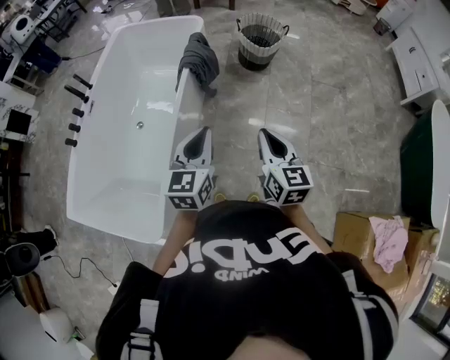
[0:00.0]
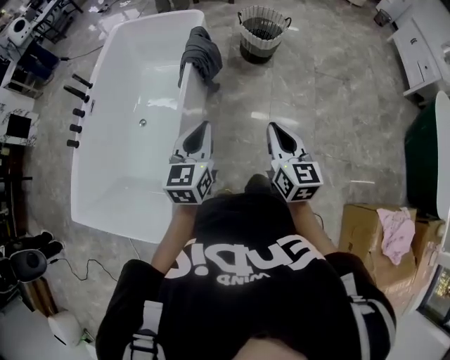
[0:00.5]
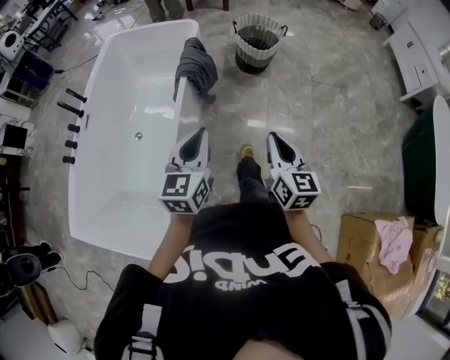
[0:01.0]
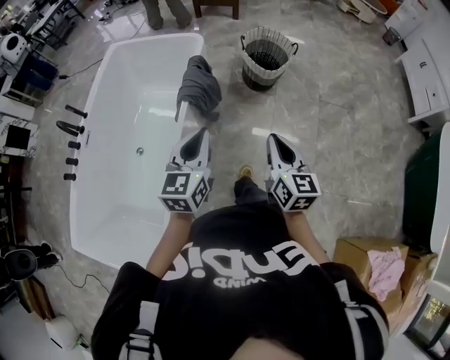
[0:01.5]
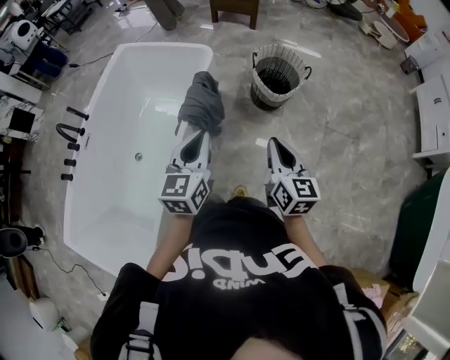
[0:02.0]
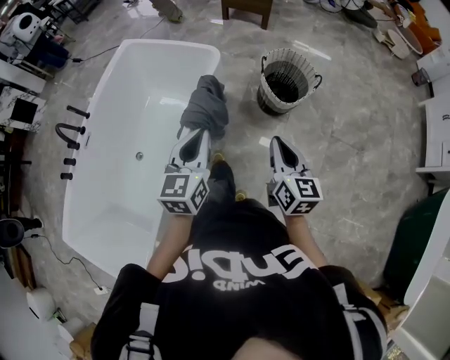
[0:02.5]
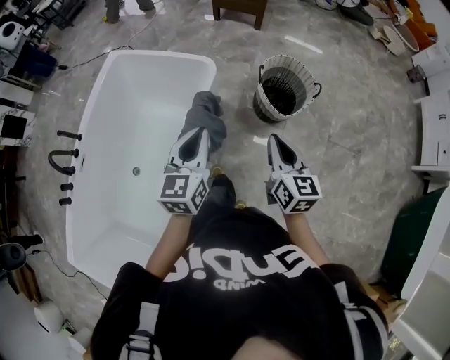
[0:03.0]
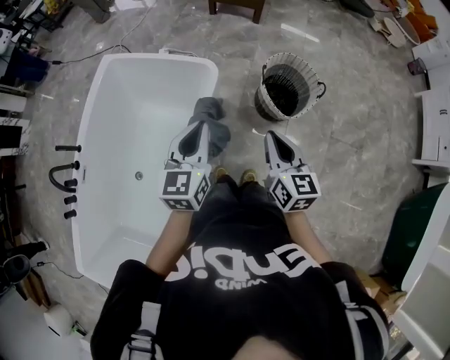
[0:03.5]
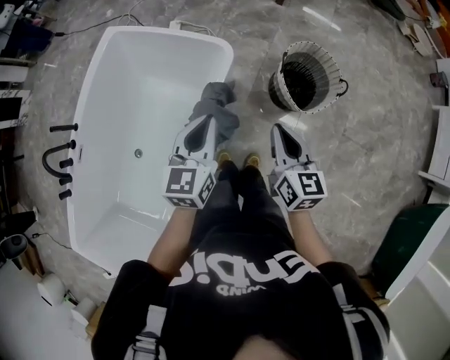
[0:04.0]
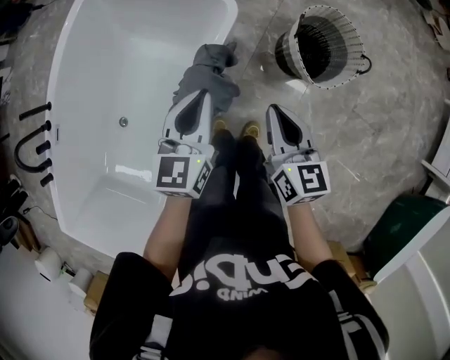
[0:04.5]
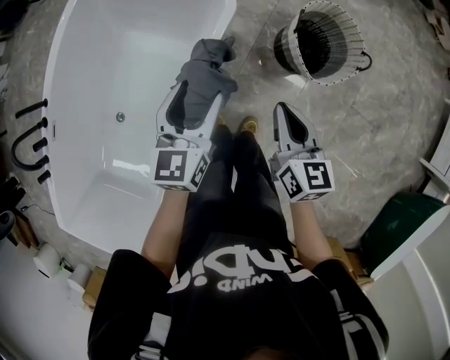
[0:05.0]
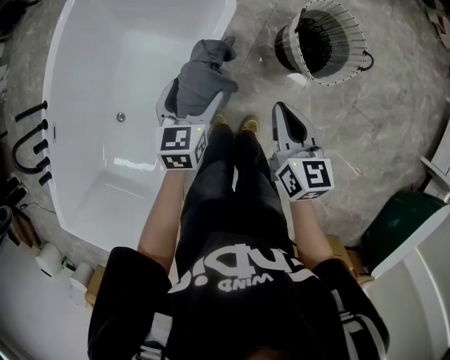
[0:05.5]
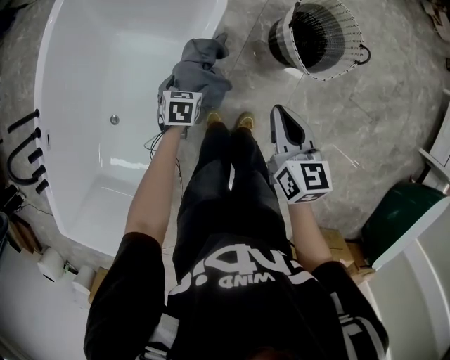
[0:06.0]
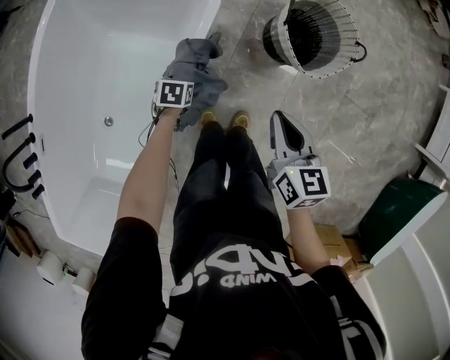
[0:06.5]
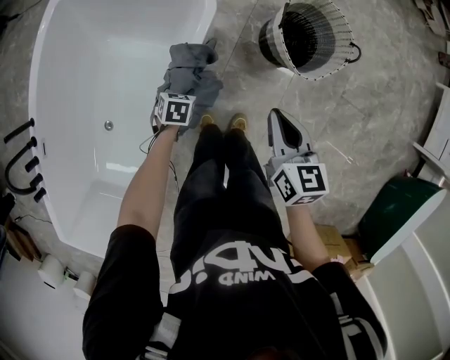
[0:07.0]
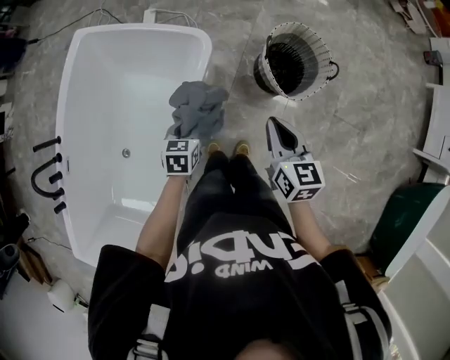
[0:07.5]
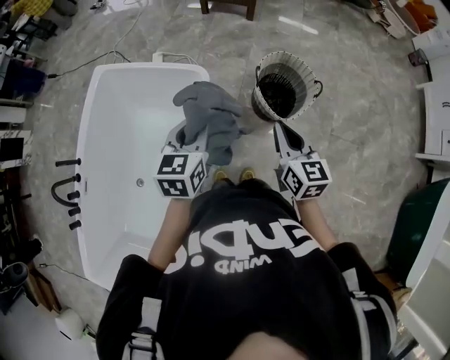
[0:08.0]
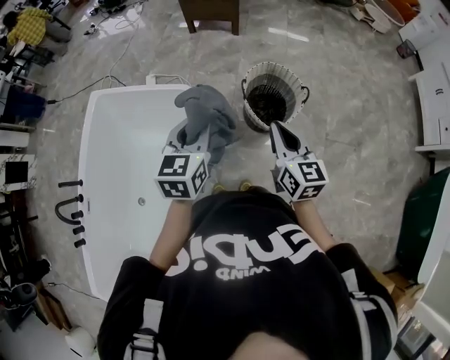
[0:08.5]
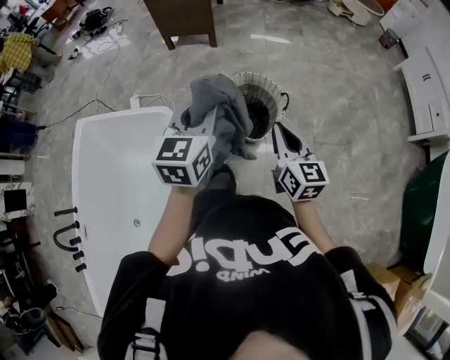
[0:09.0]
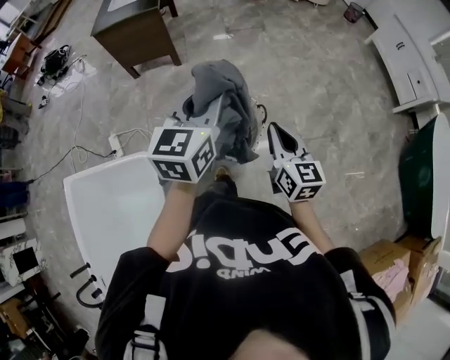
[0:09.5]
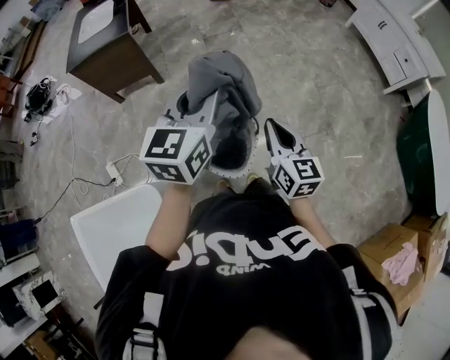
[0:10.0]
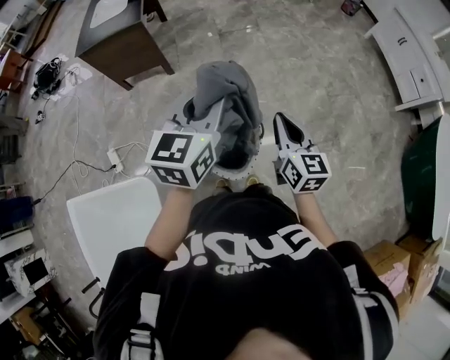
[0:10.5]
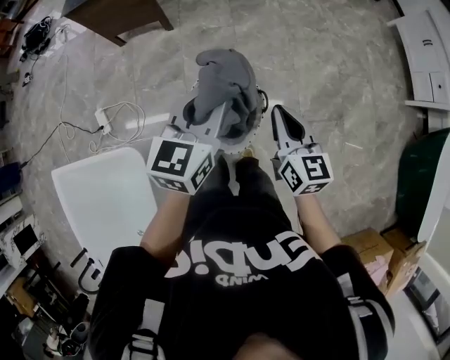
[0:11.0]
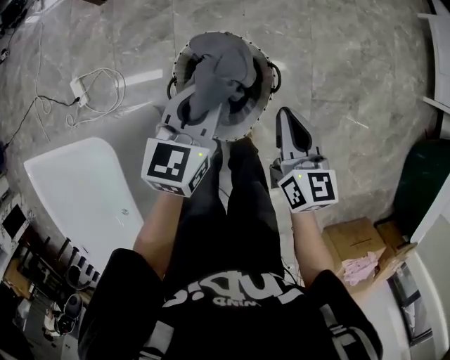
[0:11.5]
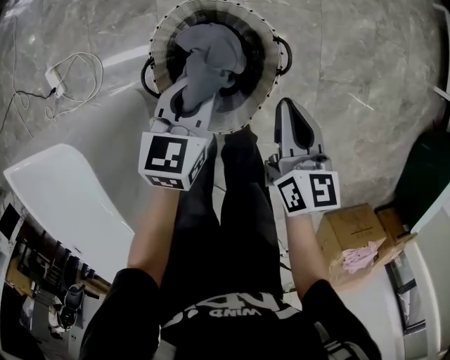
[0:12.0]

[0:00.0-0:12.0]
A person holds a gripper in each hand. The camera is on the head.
0:00.0 to 0:02.0: Both grippers travel together forward, about 35 cm.
0:02.0 to 0:04.0: Both grippers move forward, approximately 35 cm.
0:04.0 to 0:06.0: The right gripper moves downward, approximately 15 cm. The left gripper shifts approximately 40 cm downward, points its fingers some 40 degrees further downward, and opens.
0:06.0 to 0:08.0: The right gripper goes approximately 20 cm upward and to the right; the left gripper moves upward, approximately 40 cm, tips its fingers upward by roughly 40 degrees, and closes.
0:08.0 to 0:10.0: The right gripper ends up roughly 35 cm from where it was, and turns by about 30 degrees; the left gripper ends up approximately 50 cm from where it was, and turns by approximately 40 degrees.
0:10.0 to 0:12.0: Both grippers travel together downward, some 40 cm. The right gripper turns by some 20 degrees. The left gripper swivels some 30 degrees.

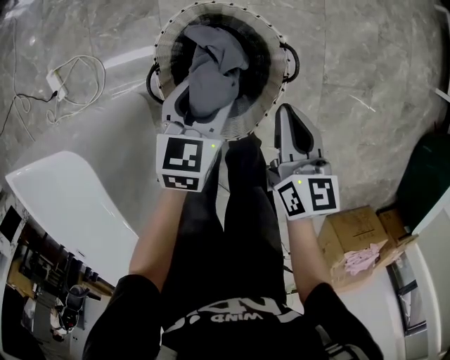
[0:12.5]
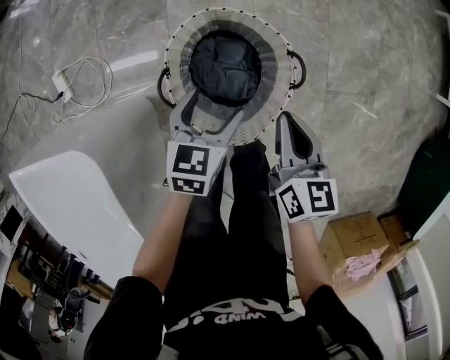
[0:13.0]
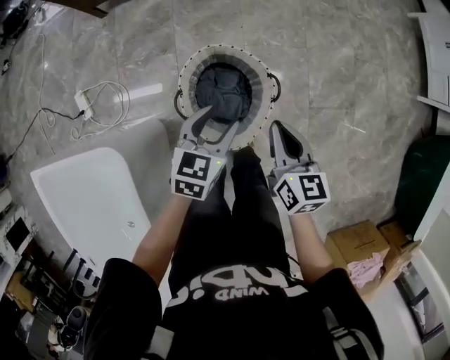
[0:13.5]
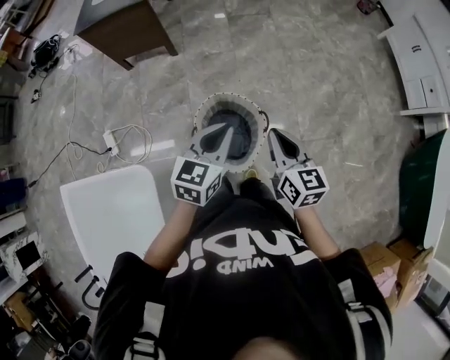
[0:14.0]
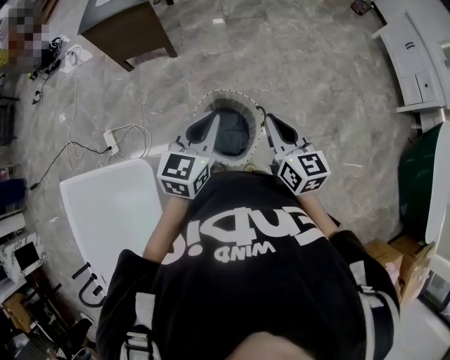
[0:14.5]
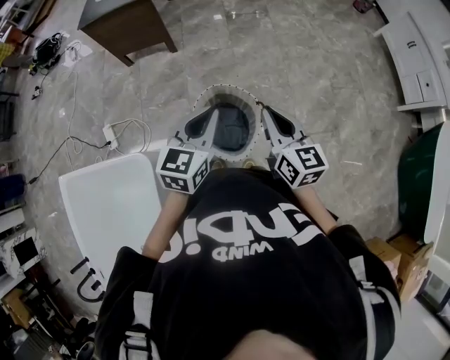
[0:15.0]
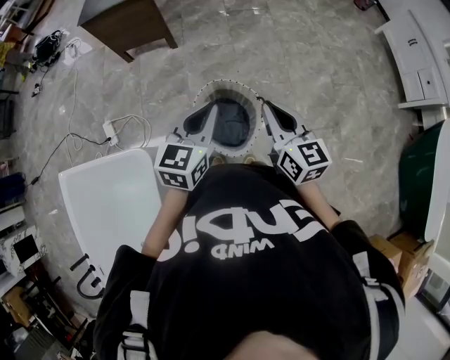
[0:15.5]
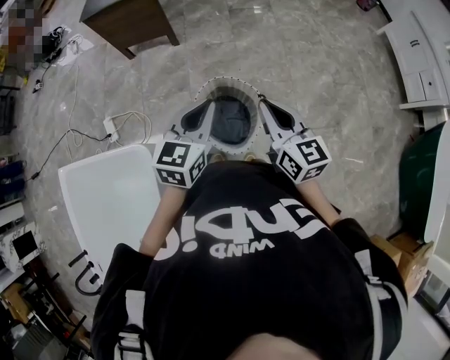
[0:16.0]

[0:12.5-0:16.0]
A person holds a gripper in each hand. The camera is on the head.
0:12.5 to 0:14.5: Both grippers travel together upward, about 35 cm. The left gripper rotates approximately 30 degrees, and closes. The right gripper swivels roughly 20 degrees.
0:14.5 to 0:16.0: The grippers move only a little.

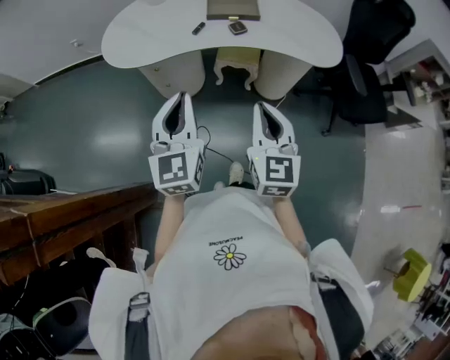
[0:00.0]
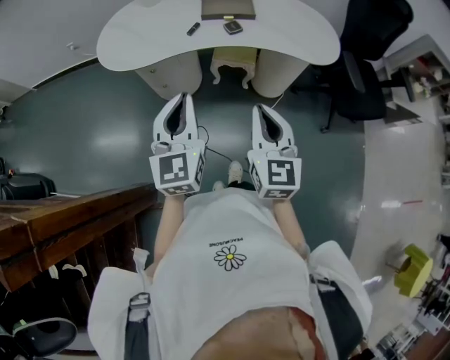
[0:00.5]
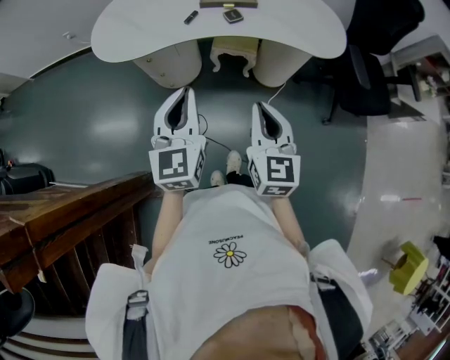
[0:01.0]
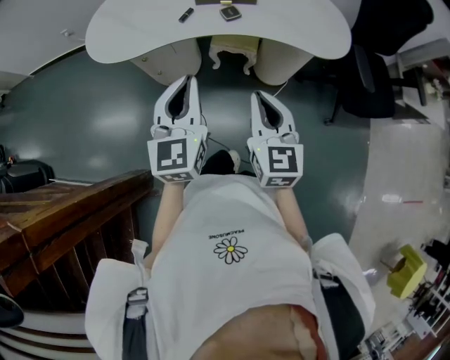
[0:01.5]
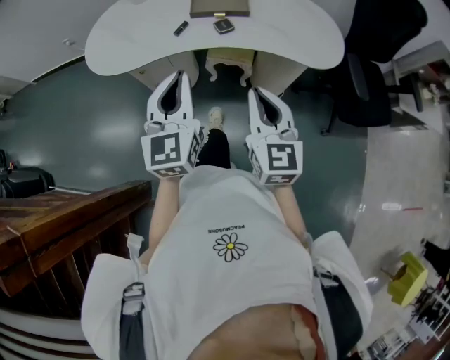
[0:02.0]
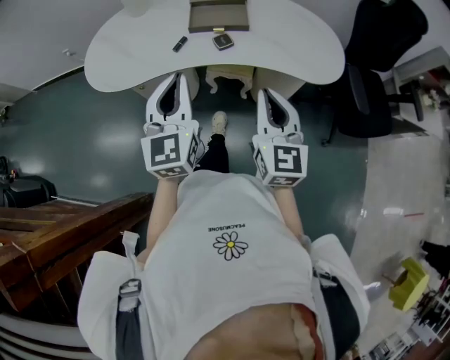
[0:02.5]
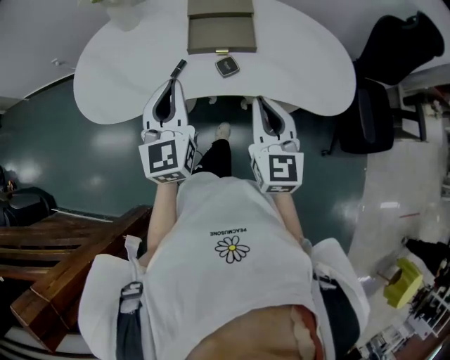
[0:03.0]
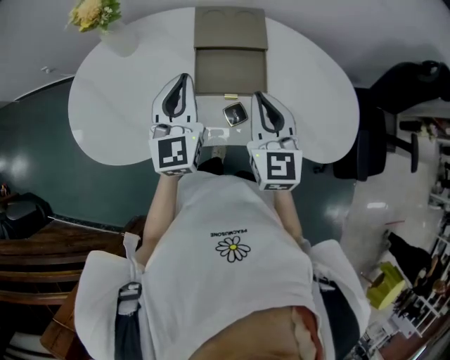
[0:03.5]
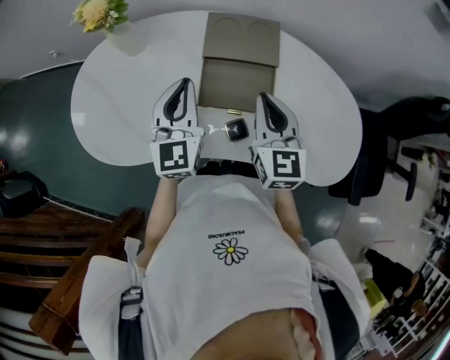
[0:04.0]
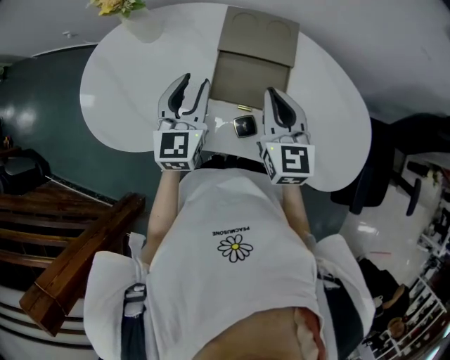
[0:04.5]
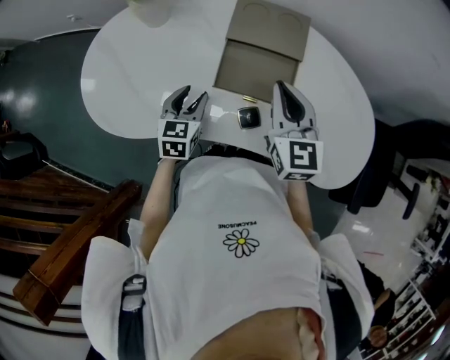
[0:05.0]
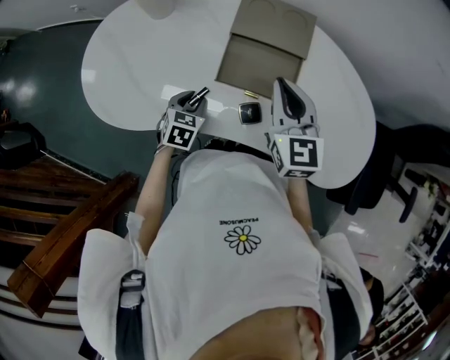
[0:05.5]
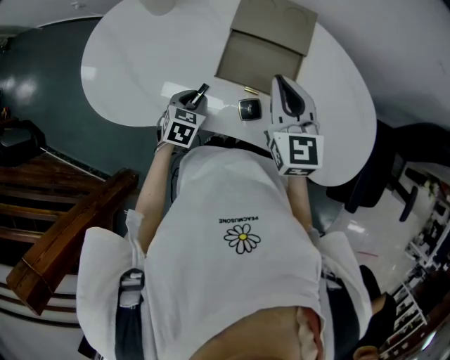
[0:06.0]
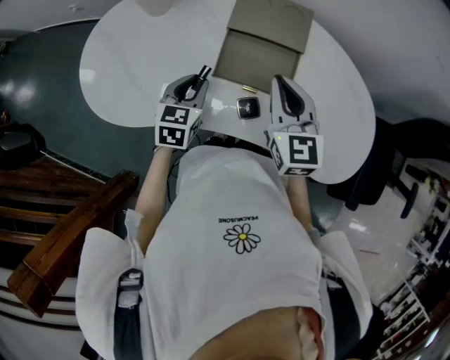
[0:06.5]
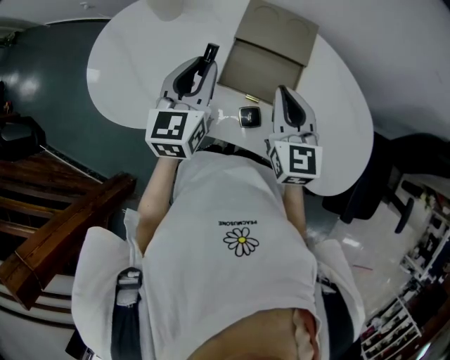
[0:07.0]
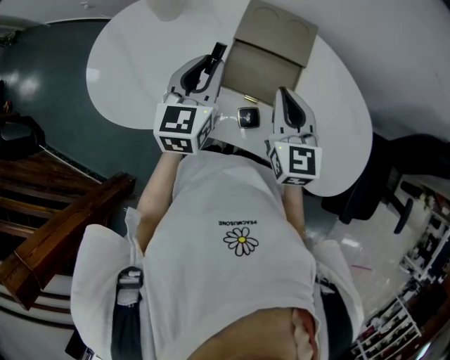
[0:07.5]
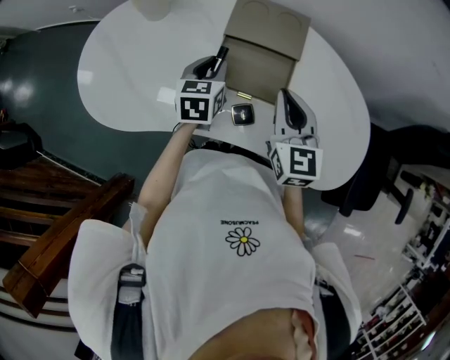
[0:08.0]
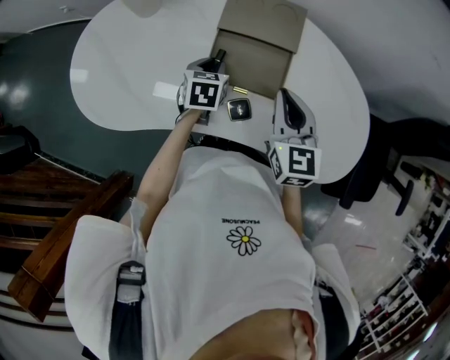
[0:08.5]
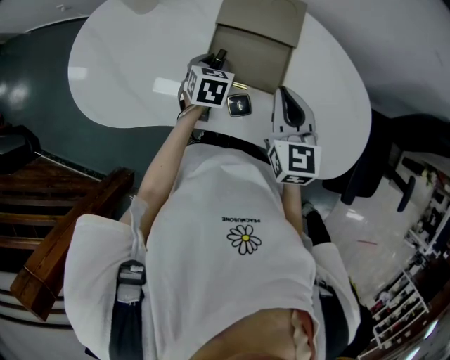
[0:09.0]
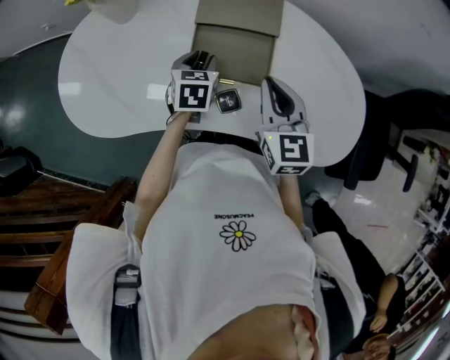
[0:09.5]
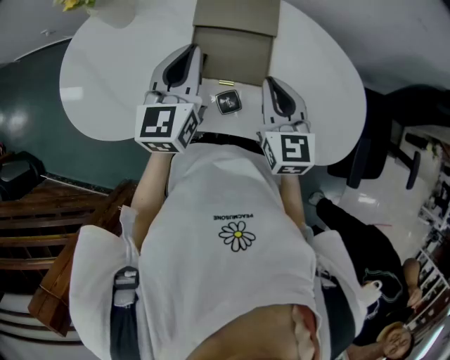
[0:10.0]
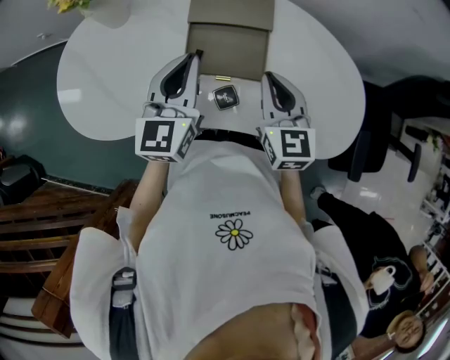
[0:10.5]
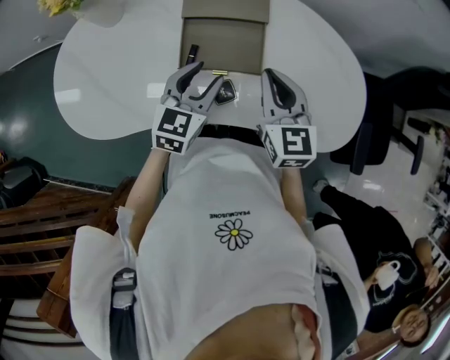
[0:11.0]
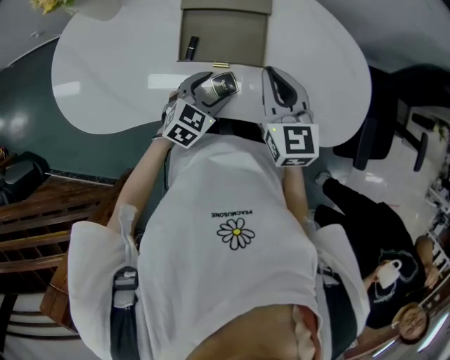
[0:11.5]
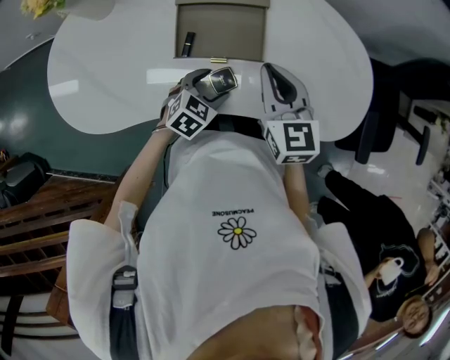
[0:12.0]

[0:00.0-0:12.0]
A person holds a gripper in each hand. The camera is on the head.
0:00.0 to 0:02.0: Both grippers move forward and to the right, roughly 10 cm.
0:02.0 to 0:04.0: The pair of grippers is taken forward, roughly 40 cm.
0:04.0 to 0:06.0: The left gripper shifts about 25 cm downward, and points its fingers approximately 50 degrees further downward.
0:06.0 to 0:08.0: The left gripper shifts some 15 cm upward, forward and to the right, and swivels some 20 degrees.
0:08.0 to 0:10.0: The left gripper travels upward by roughly 10 cm, and rotates about 30 degrees.
0:10.0 to 0:12.0: The left gripper goes roughly 25 cm downward and backward, tips its fingers downward by about 40 degrees, and opens its fingers.
